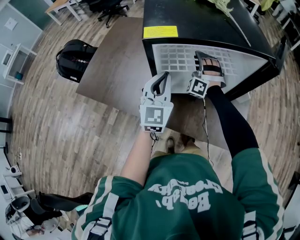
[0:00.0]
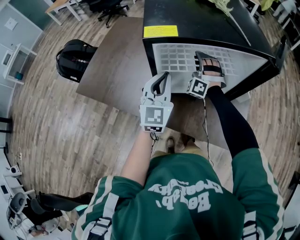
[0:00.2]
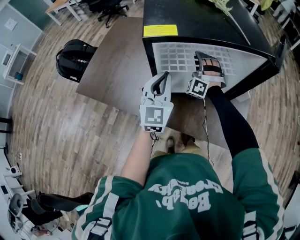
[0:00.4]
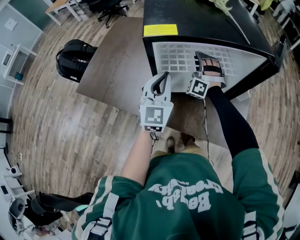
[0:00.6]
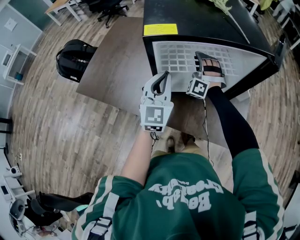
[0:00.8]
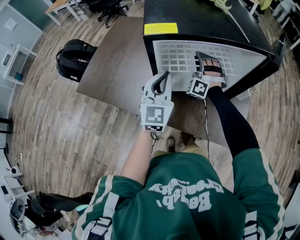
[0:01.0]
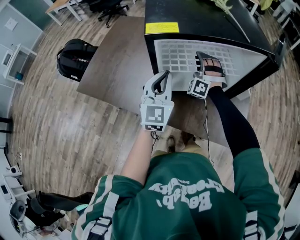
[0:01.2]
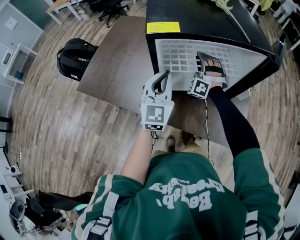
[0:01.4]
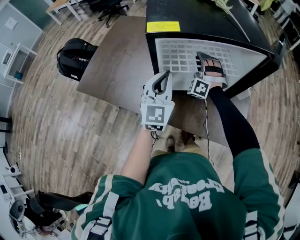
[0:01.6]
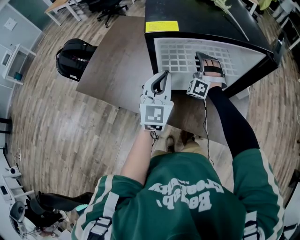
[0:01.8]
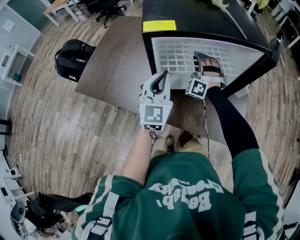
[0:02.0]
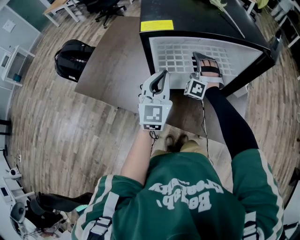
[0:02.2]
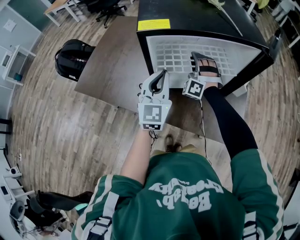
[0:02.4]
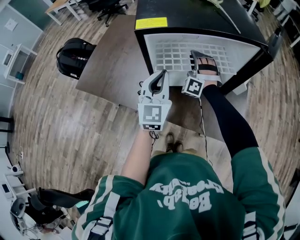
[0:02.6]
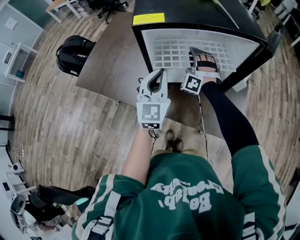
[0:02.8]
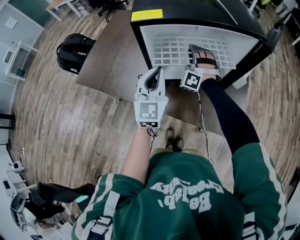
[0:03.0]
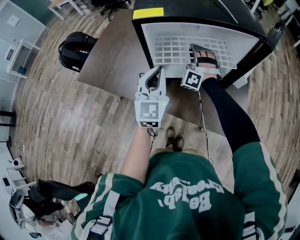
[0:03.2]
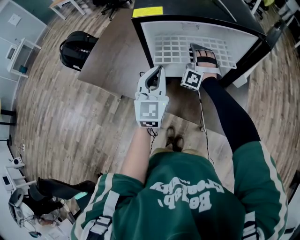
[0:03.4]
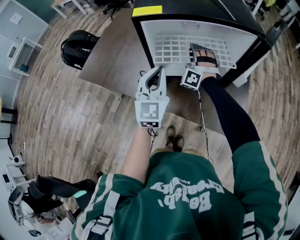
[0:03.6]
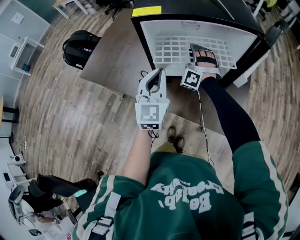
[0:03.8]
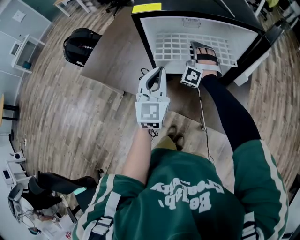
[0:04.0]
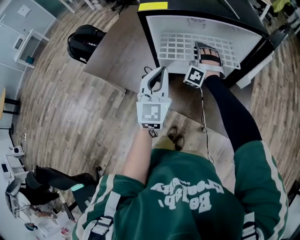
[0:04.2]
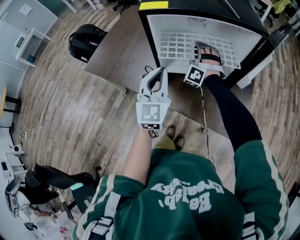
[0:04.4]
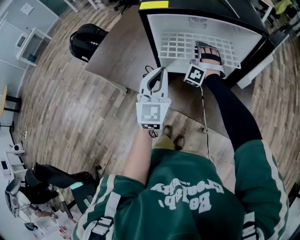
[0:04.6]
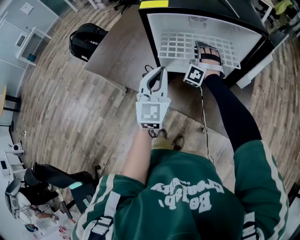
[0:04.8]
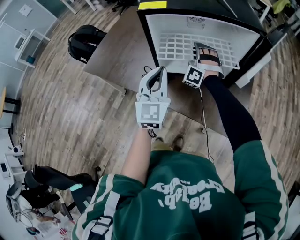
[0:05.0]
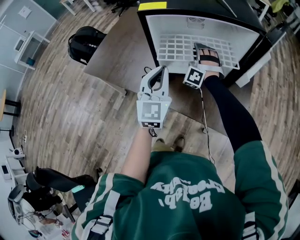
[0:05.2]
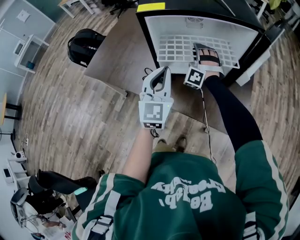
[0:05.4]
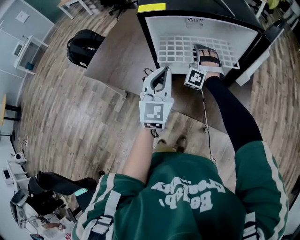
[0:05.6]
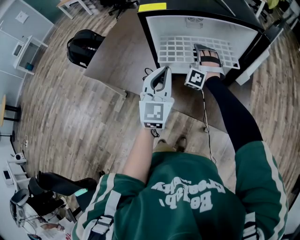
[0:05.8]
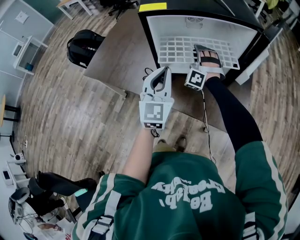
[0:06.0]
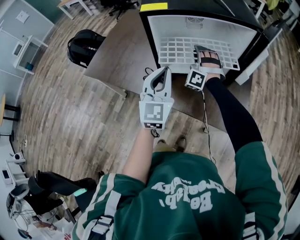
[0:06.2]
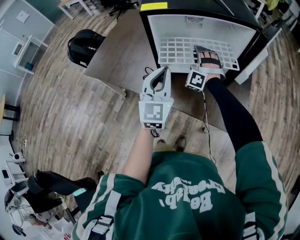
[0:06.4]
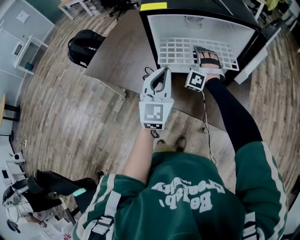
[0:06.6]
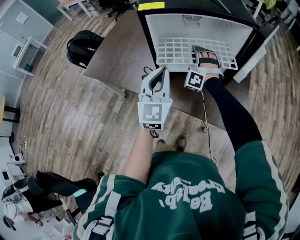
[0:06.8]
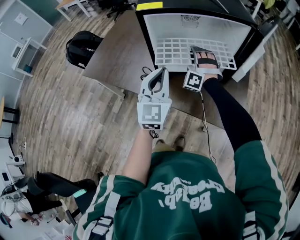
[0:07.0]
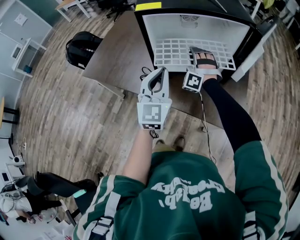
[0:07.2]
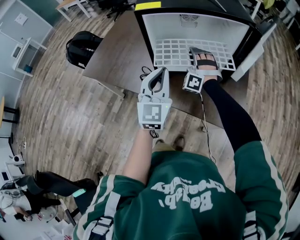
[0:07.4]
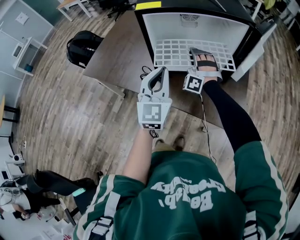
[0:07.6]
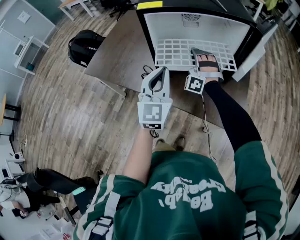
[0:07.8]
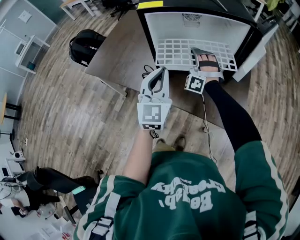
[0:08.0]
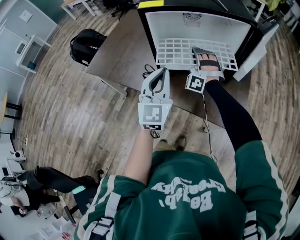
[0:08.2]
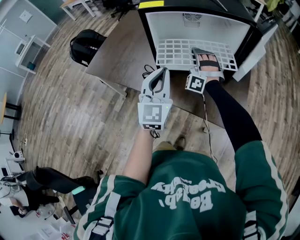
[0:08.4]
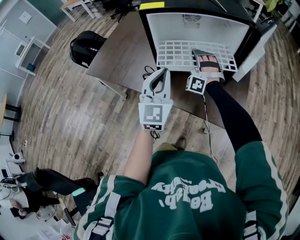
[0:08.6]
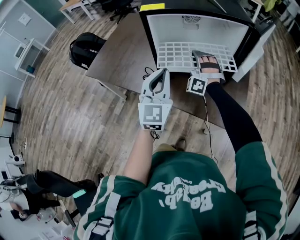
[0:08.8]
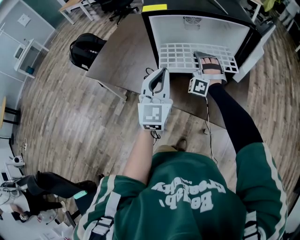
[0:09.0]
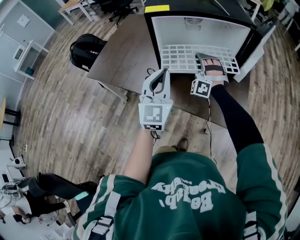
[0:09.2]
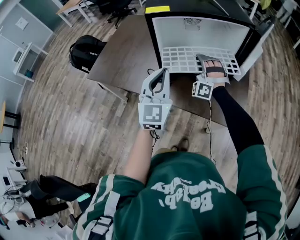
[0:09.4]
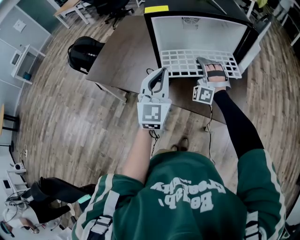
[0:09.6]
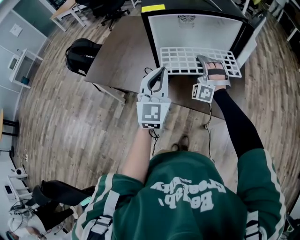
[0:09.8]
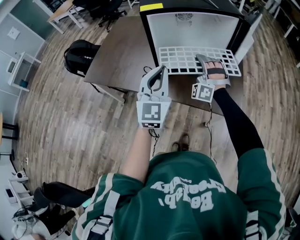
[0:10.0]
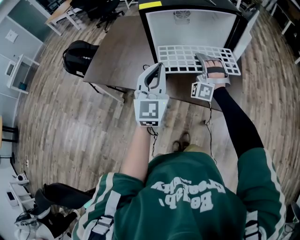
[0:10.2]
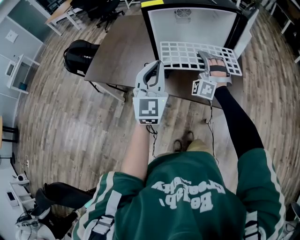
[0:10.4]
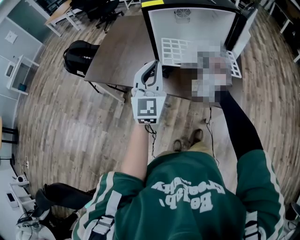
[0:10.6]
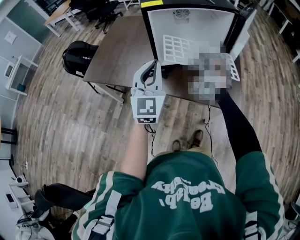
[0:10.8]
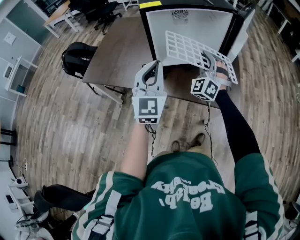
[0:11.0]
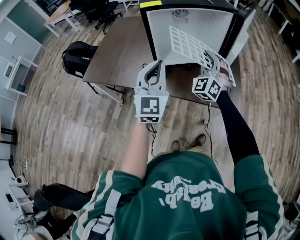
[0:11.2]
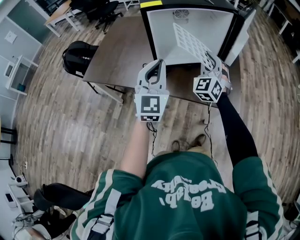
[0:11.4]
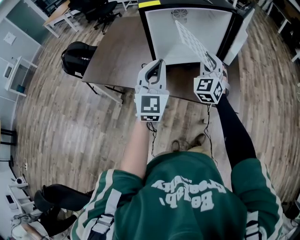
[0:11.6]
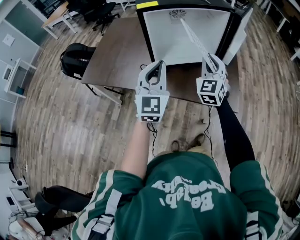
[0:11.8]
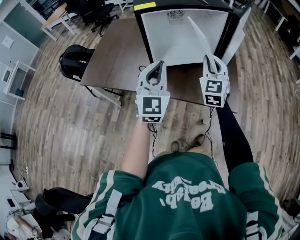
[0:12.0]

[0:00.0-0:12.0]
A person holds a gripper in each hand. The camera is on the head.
0.0 to 3.0 s: The grippers move only a little.
3.0 to 6.0 s: The grippers move only a little.
6.0 to 9.0 s: There are only small adjustments of the grippers.
9.0 to 10.4 s: The left gripper changes place by about 5 cm. Meanwhile the right gripper heads backward, covering roughly 10 cm.
10.4 to 12.0 s: The right gripper travels to the right and upward by approximately 10 cm, and rolls clockwise, seen from behind, by some 60 degrees.

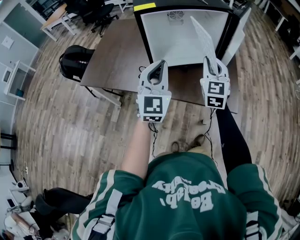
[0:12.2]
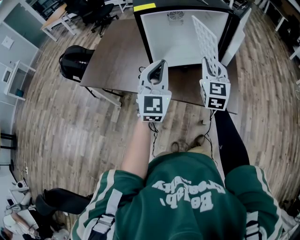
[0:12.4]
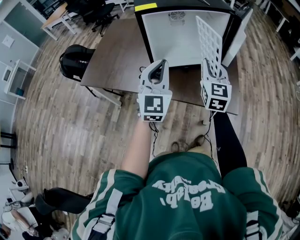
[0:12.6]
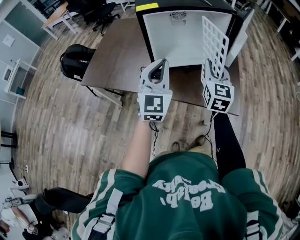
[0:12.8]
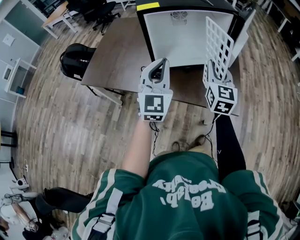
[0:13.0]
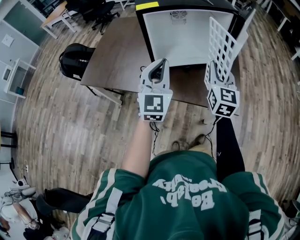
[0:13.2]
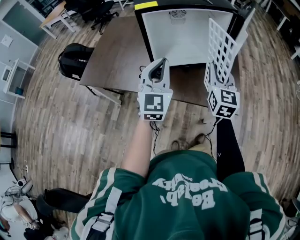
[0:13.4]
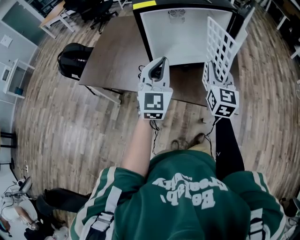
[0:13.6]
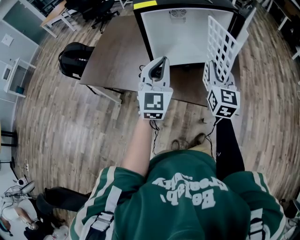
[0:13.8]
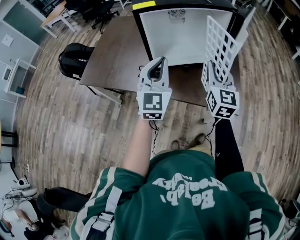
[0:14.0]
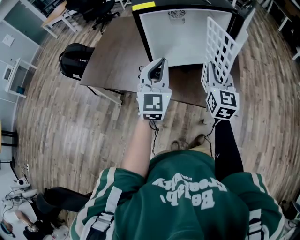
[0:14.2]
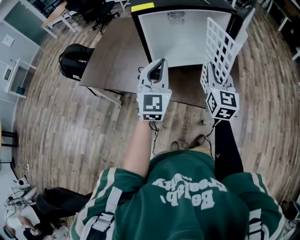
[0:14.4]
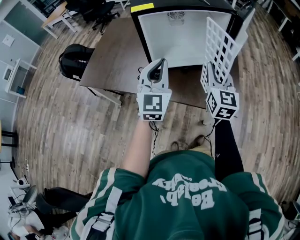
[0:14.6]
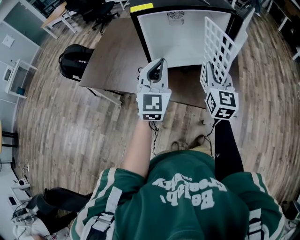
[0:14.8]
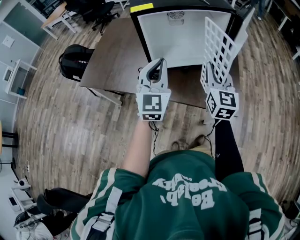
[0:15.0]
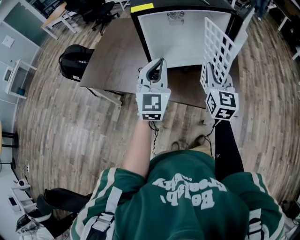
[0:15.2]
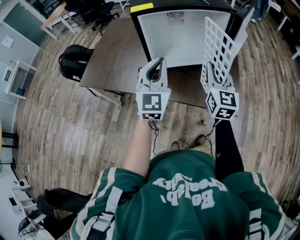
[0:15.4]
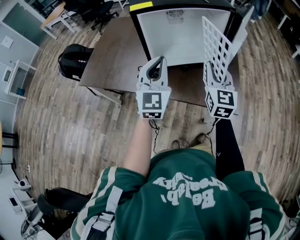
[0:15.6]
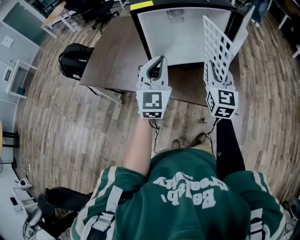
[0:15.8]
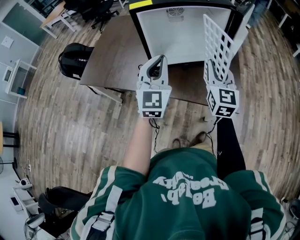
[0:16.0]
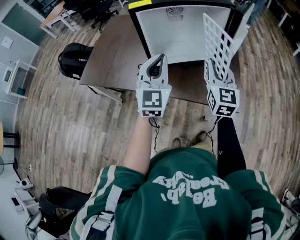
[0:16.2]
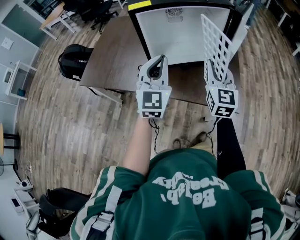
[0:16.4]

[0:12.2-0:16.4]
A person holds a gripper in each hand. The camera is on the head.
12.2 to 13.6 s: There are only small adjustments of the grippers.
13.6 to 16.4 s: The two grippers keep their place.

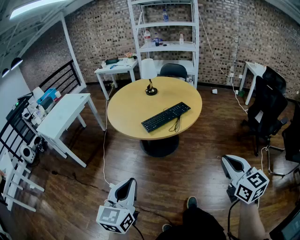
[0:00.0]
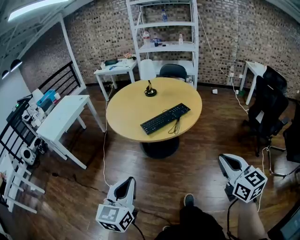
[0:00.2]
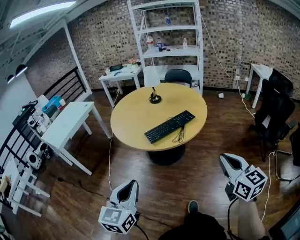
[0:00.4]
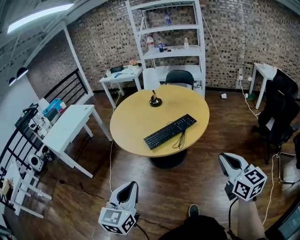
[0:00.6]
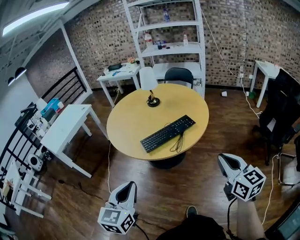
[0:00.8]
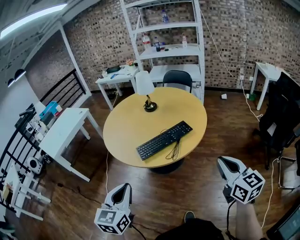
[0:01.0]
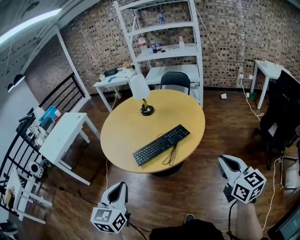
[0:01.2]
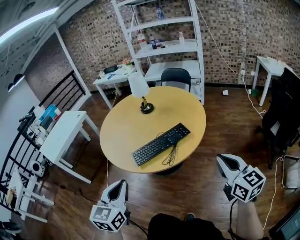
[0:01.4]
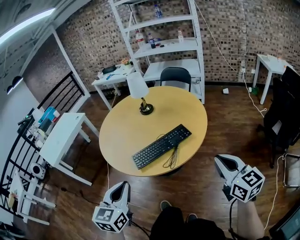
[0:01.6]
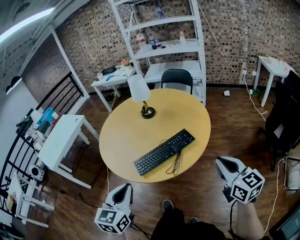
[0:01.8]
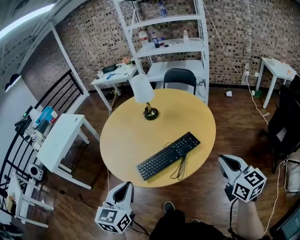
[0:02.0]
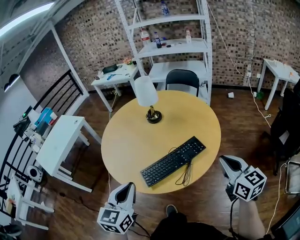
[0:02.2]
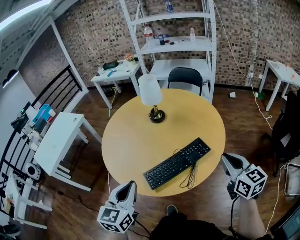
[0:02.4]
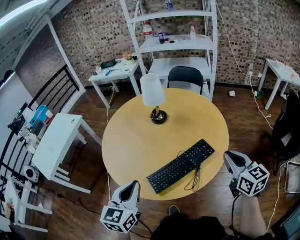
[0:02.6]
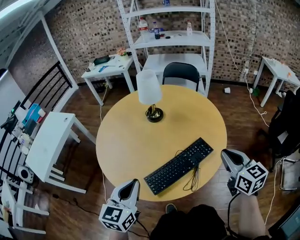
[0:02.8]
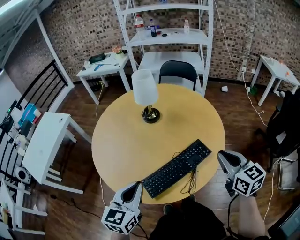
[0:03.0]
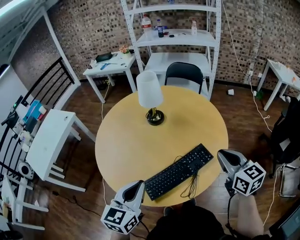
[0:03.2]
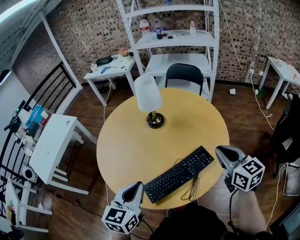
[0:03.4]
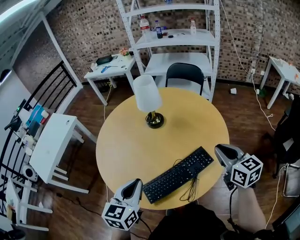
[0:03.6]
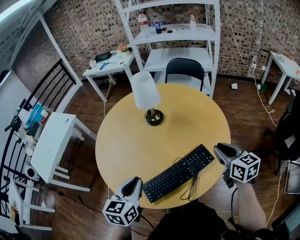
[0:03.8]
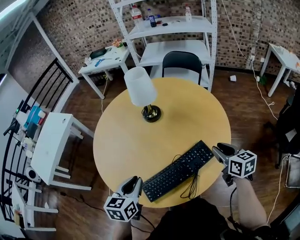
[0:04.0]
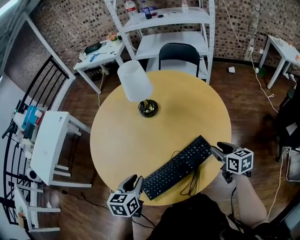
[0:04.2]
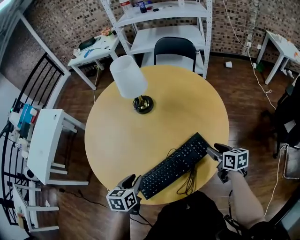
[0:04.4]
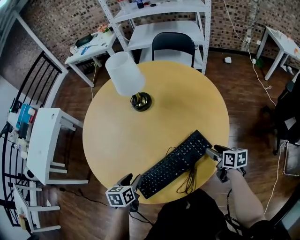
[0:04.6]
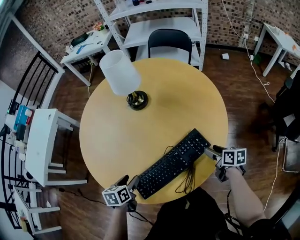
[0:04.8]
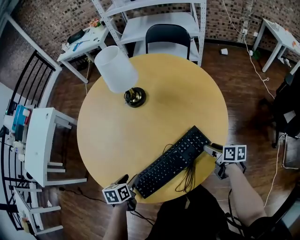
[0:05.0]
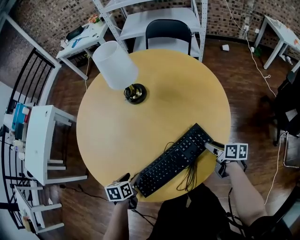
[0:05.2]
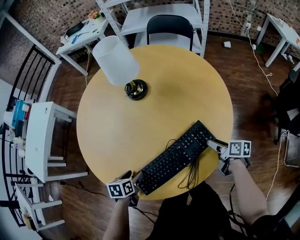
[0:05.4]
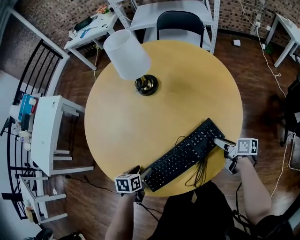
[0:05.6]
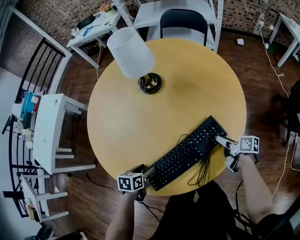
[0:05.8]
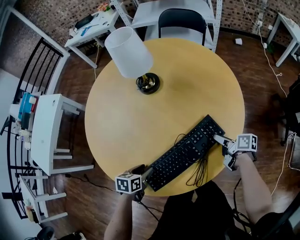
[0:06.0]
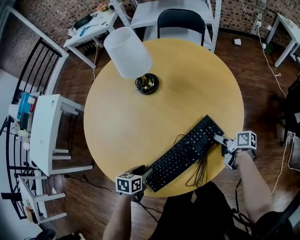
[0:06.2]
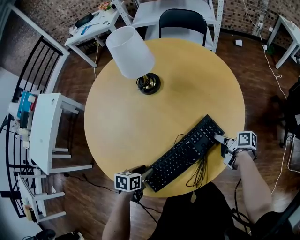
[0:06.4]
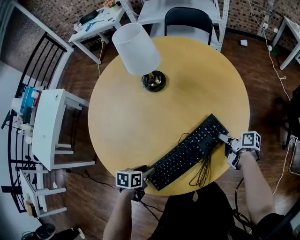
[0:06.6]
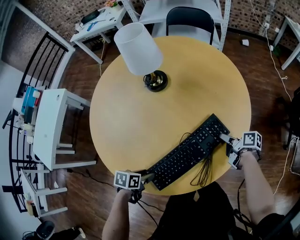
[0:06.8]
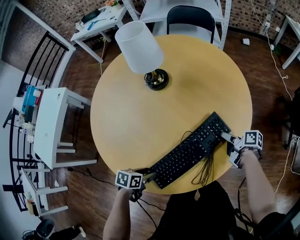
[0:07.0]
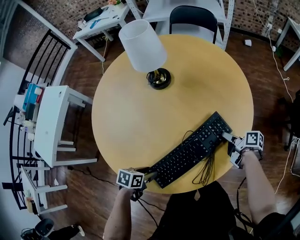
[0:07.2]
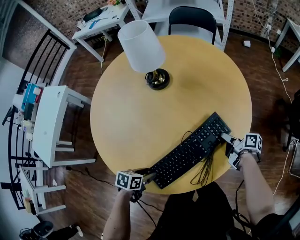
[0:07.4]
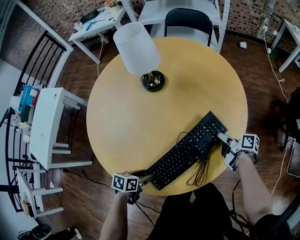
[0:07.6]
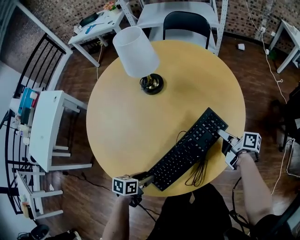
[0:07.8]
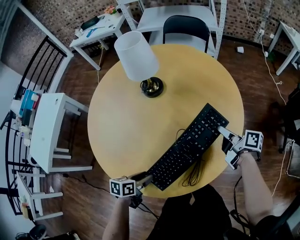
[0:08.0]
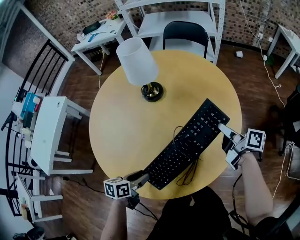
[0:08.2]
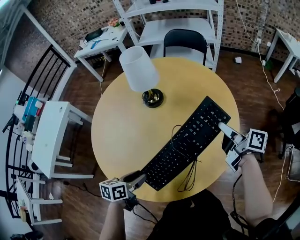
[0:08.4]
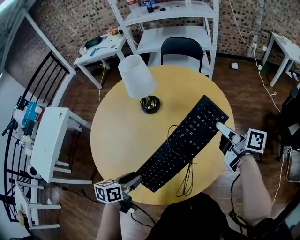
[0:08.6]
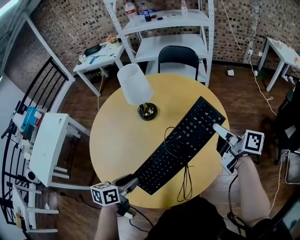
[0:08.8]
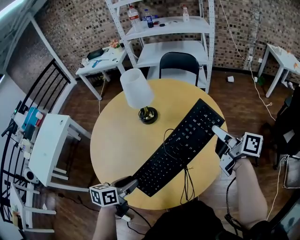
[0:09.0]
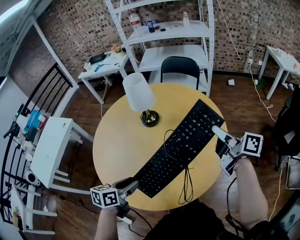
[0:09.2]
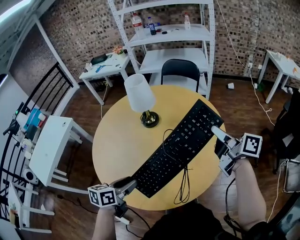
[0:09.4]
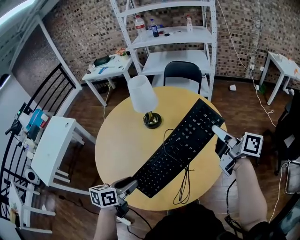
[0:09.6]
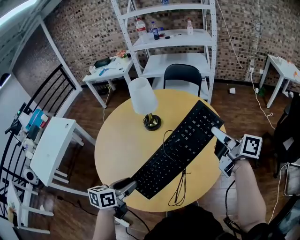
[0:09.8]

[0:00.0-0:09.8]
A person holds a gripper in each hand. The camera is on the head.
0.0 to 1.4 s: Both grippers move forward and to the right, roughly 30 cm.
1.4 to 2.8 s: The right gripper goes some 30 cm forward and to the left. The left gripper heads forward, covering roughly 30 cm.
2.8 to 4.2 s: Both grippers move downward and forward, roughly 20 cm. The right gripper turns by some 20 degrees, and opens. Meanwhile the left gripper rotates roughly 20 degrees.
4.2 to 5.6 s: The grippers both shift downward by approximately 15 cm. The left gripper turns by roughly 30 degrees, and opens up, while the right gripper turns by roughly 40 degrees.
5.6 to 7.0 s: The right gripper closes its fingers.
7.0 to 8.4 s: The left gripper shifts approximately 15 cm upward, and turns by approximately 30 degrees, while the right gripper moves upward, roughly 20 cm, and rotates some 30 degrees.
8.4 to 9.8 s: Both grippers move upward, roughly 15 cm.
